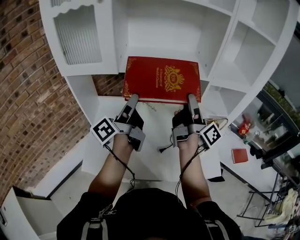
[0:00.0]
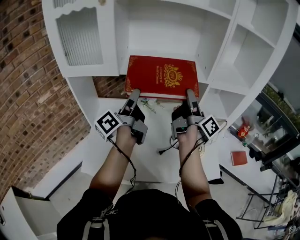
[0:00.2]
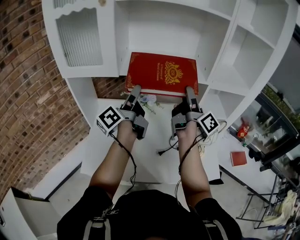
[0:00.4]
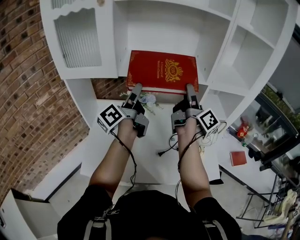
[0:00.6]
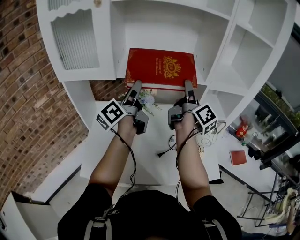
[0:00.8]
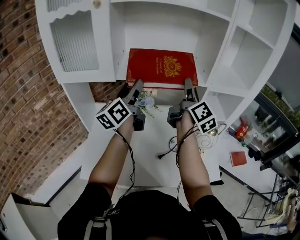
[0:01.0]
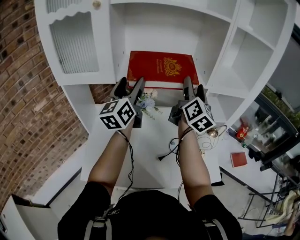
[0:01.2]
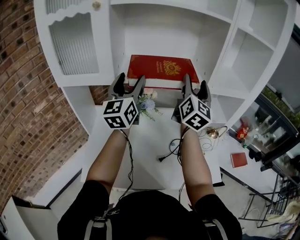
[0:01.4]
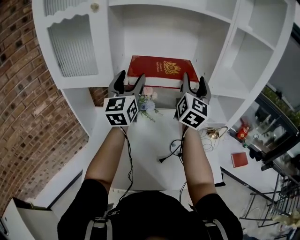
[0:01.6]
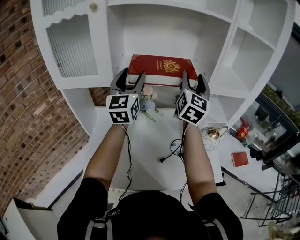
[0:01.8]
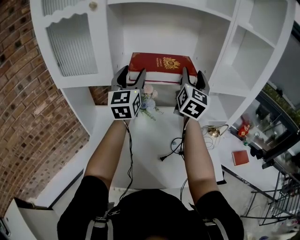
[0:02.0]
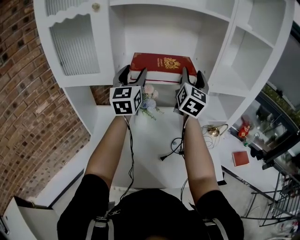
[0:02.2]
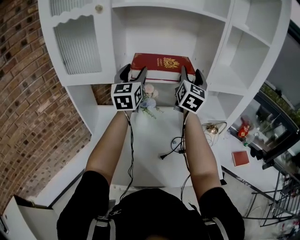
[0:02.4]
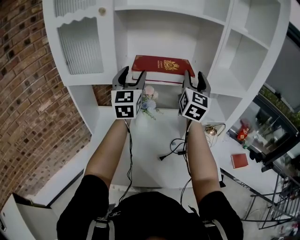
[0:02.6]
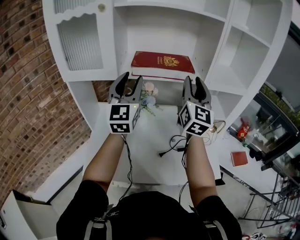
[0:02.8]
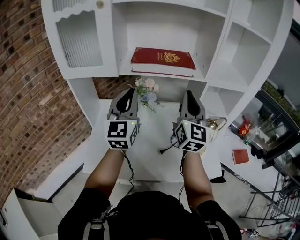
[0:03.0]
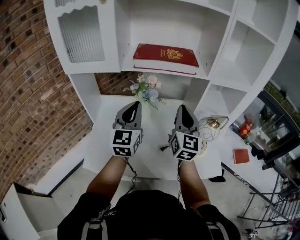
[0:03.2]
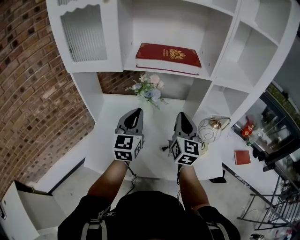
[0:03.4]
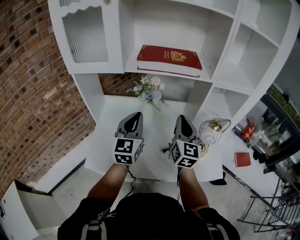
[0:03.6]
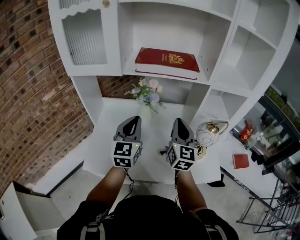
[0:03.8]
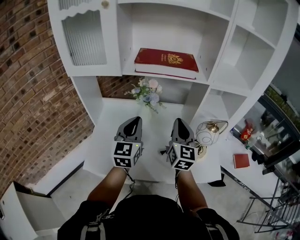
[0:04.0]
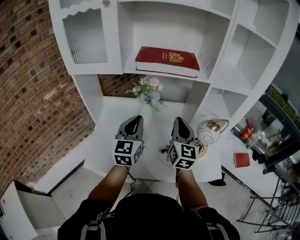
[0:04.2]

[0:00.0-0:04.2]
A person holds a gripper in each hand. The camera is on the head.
0:00.0 to 0:01.4: The two grippers go roughly 10 cm forward and upward. The left gripper twists roughly 70 degrees clockwise, seen from behind, while the right gripper rolls counterclockwise, seen from behind, by approximately 70 degrees.
0:01.4 to 0:02.8: The grippers both shift backward by some 5 cm. The left gripper closes. The right gripper closes up.
0:02.8 to 0:04.2: Both grippers move downward and backward, approximately 20 cm. The left gripper turns by about 20 degrees, and closes its fingers. Meanwhile the right gripper closes.

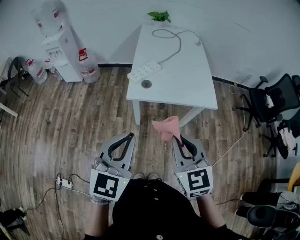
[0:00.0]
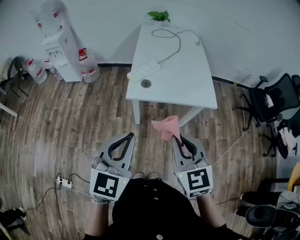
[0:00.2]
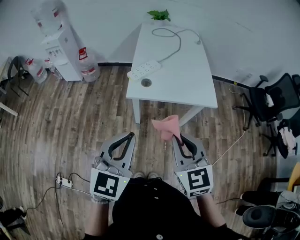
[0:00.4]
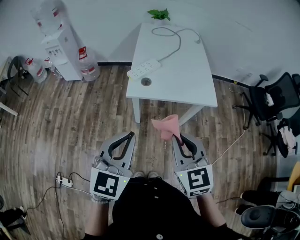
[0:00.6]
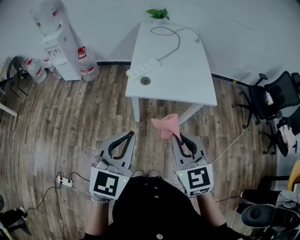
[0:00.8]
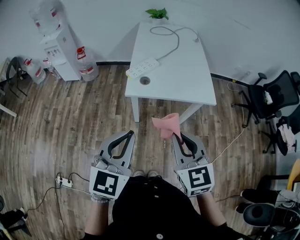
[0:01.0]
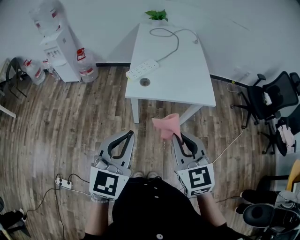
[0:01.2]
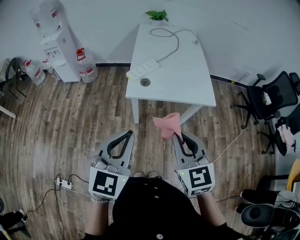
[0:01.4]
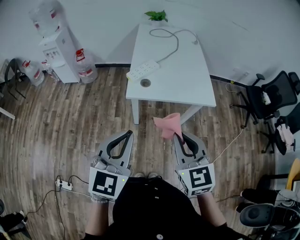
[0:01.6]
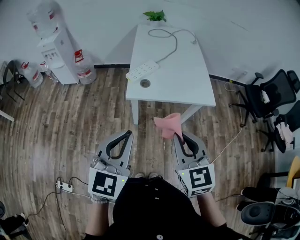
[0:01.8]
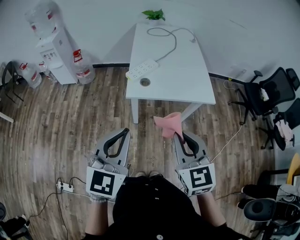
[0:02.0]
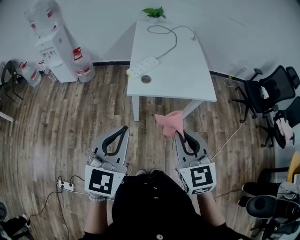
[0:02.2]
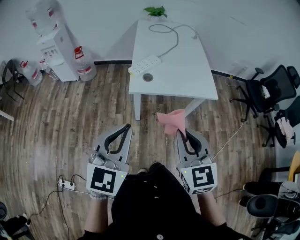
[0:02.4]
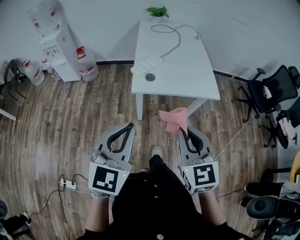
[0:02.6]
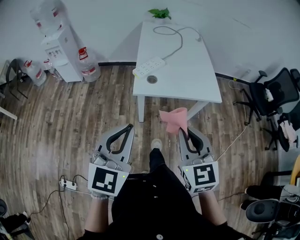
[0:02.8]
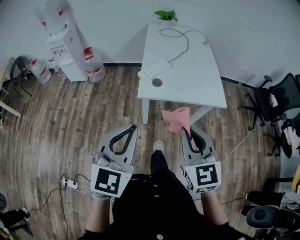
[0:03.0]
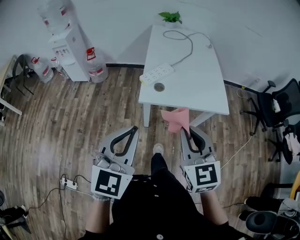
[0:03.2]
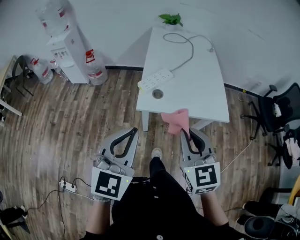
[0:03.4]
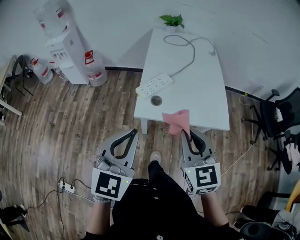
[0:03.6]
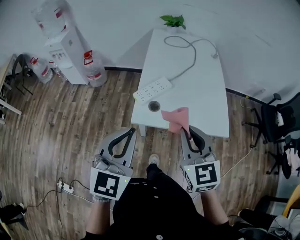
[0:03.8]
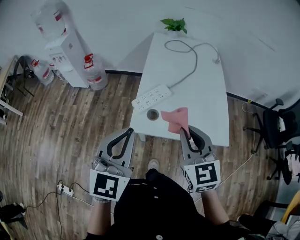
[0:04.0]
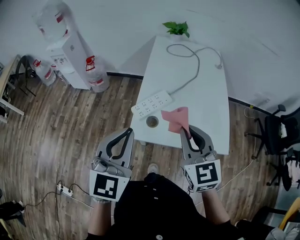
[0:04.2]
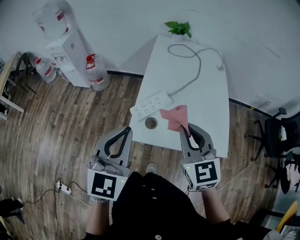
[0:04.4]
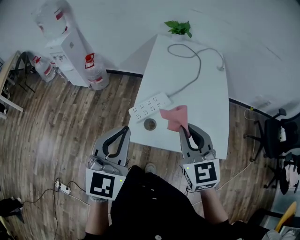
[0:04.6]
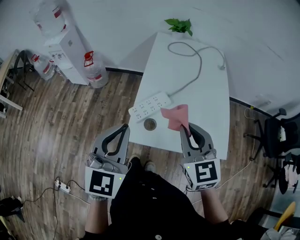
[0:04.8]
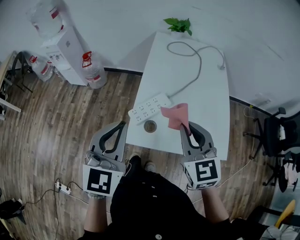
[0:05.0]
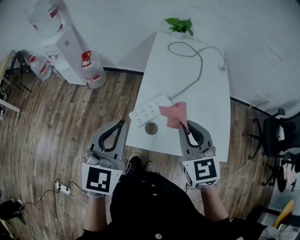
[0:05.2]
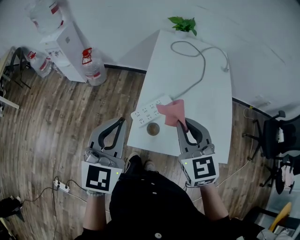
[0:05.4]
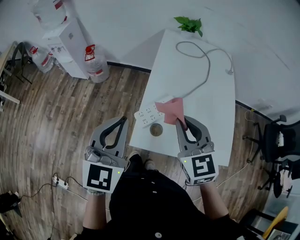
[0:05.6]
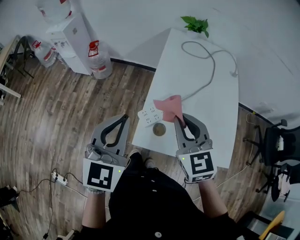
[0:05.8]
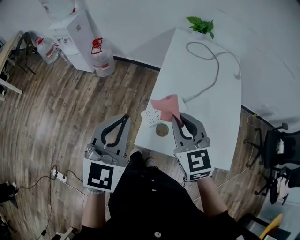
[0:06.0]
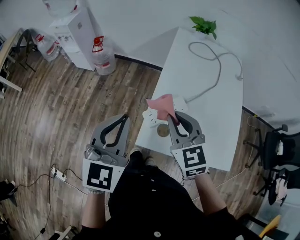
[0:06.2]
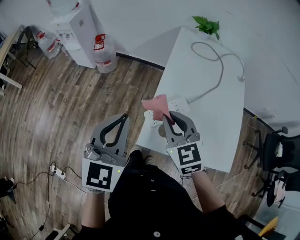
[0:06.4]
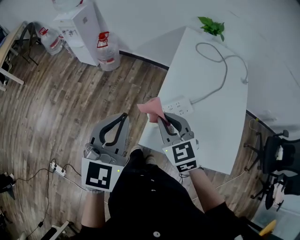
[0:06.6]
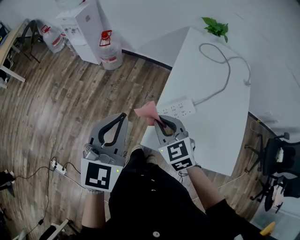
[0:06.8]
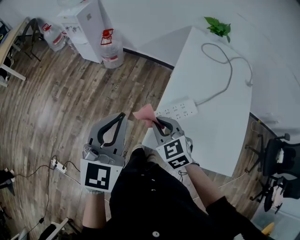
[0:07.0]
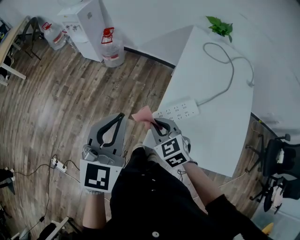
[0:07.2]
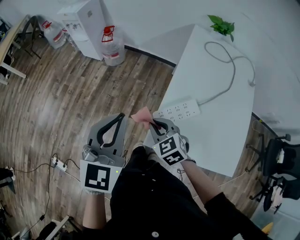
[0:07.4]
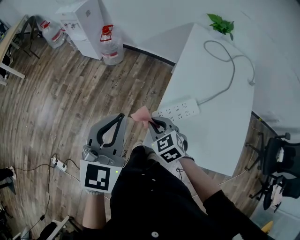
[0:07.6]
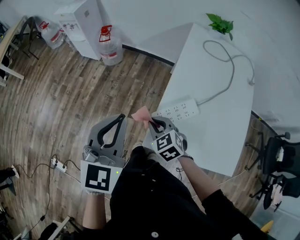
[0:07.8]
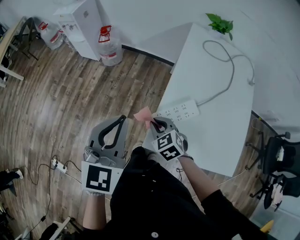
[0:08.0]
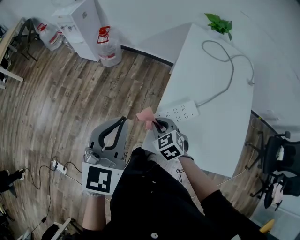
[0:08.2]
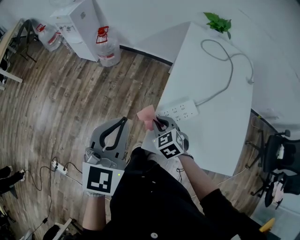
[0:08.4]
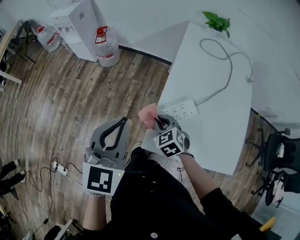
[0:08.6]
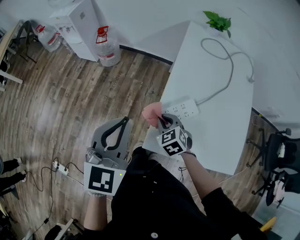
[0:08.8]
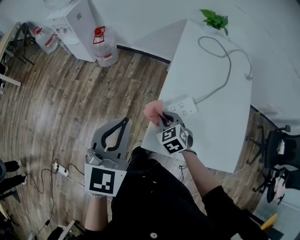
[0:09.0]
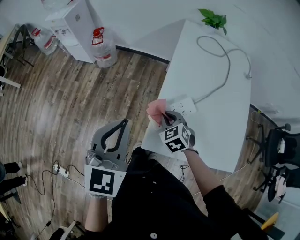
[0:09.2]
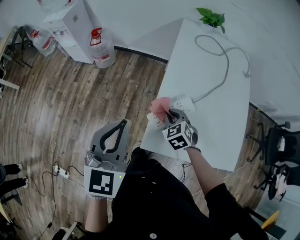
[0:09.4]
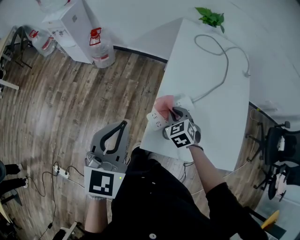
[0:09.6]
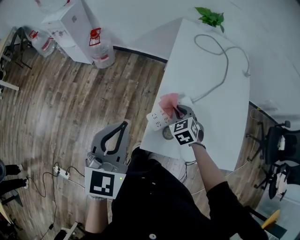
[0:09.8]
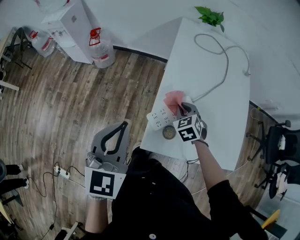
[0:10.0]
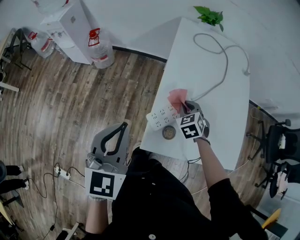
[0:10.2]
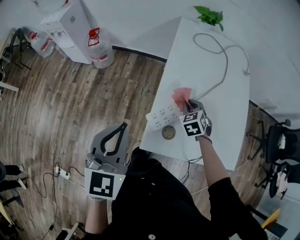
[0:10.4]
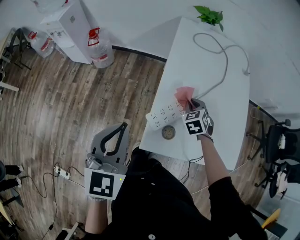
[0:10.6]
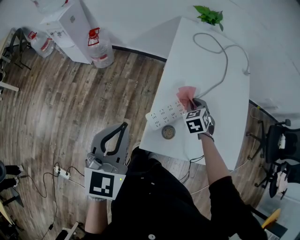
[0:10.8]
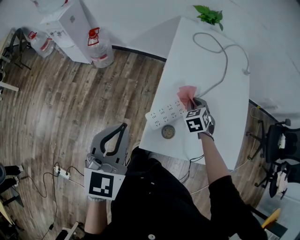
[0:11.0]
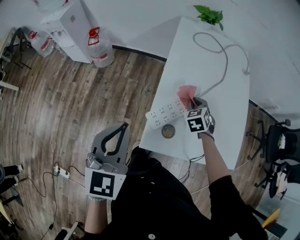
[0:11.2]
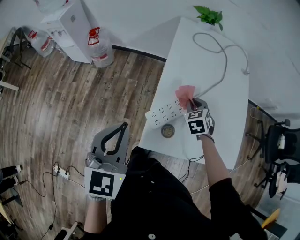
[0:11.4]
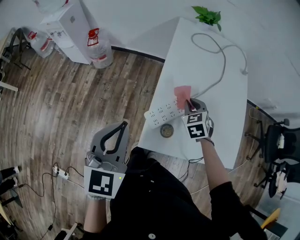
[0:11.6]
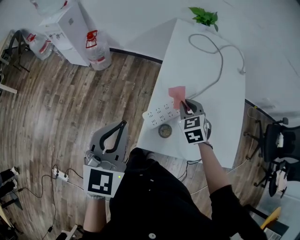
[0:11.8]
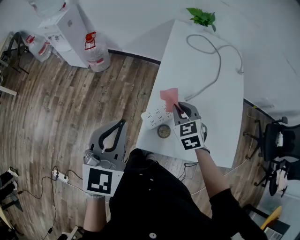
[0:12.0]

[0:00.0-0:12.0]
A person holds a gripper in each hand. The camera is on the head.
0:00.0 to 0:03.0: The grippers make only small movements.
0:03.0 to 0:04.4: The two grippers go some 30 cm forward.
0:04.4 to 0:06.0: The two grippers go some 15 cm forward and to the left.
0:06.0 to 0:07.6: The left gripper goes approximately 5 cm to the left, while the right gripper is displaced downward and to the left by roughly 20 cm, and swivels roughly 30 degrees.
0:07.6 to 0:09.0: The right gripper moves to the right, some 5 cm.
0:09.0 to 0:10.4: The right gripper travels to the right and forward by roughly 15 cm.
0:10.4 to 0:12.0: The right gripper moves upward and backward, roughly 10 cm.

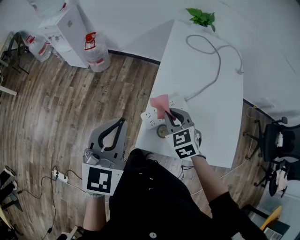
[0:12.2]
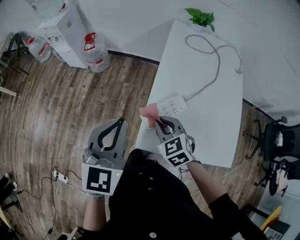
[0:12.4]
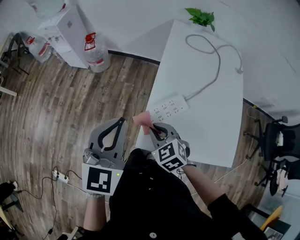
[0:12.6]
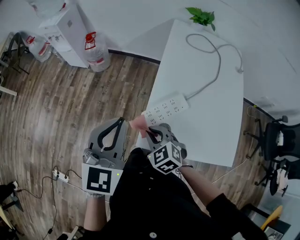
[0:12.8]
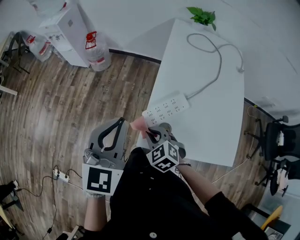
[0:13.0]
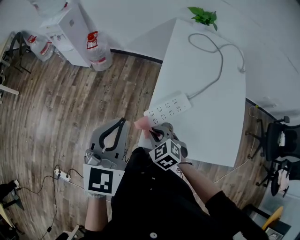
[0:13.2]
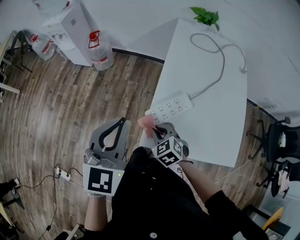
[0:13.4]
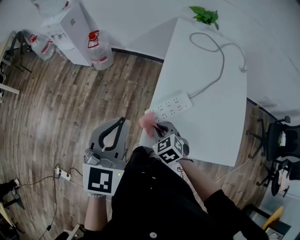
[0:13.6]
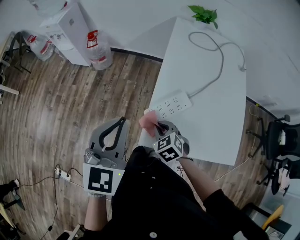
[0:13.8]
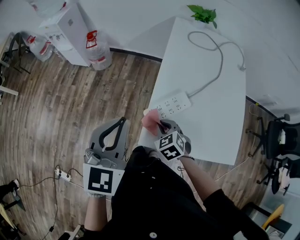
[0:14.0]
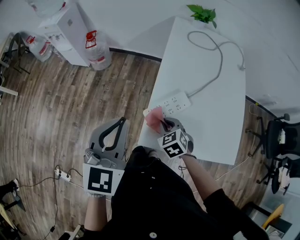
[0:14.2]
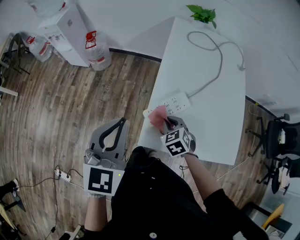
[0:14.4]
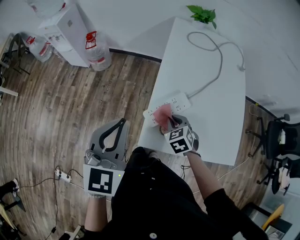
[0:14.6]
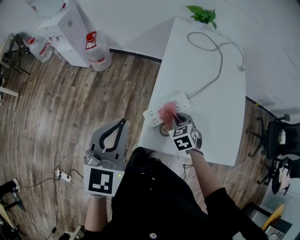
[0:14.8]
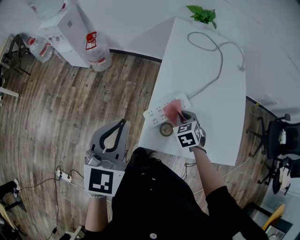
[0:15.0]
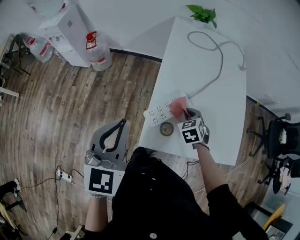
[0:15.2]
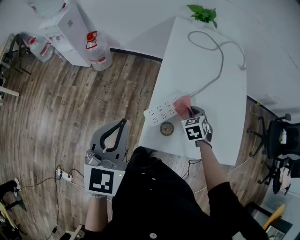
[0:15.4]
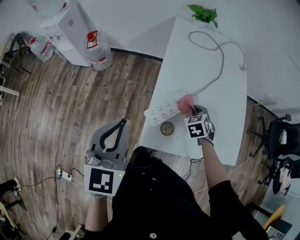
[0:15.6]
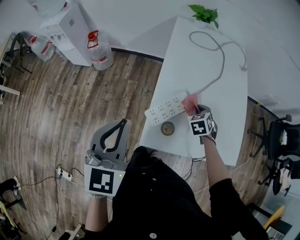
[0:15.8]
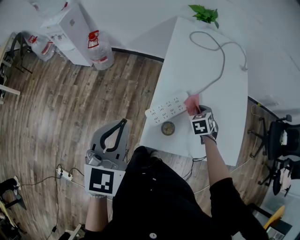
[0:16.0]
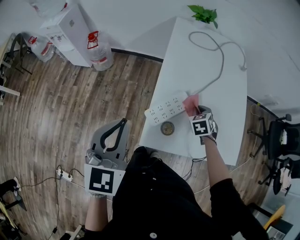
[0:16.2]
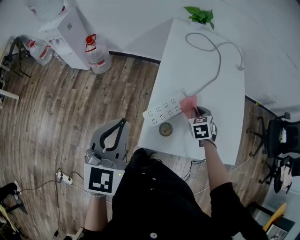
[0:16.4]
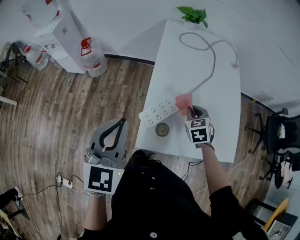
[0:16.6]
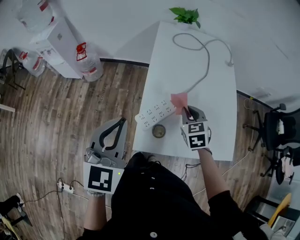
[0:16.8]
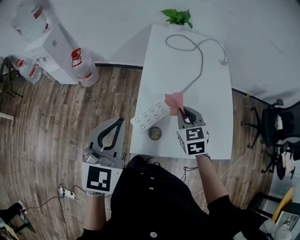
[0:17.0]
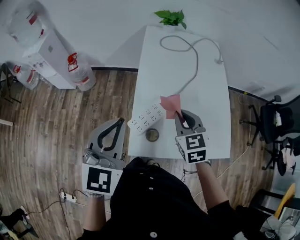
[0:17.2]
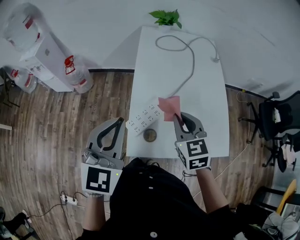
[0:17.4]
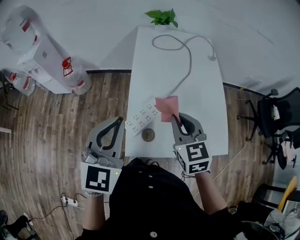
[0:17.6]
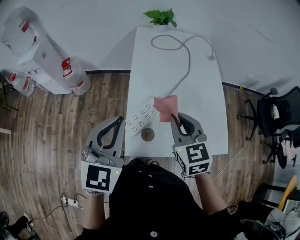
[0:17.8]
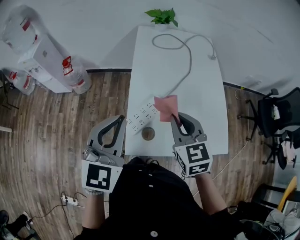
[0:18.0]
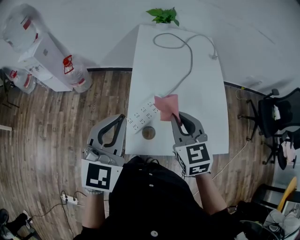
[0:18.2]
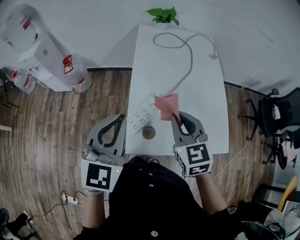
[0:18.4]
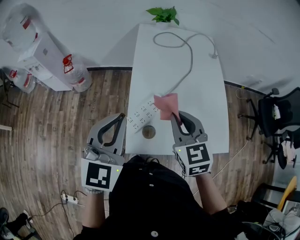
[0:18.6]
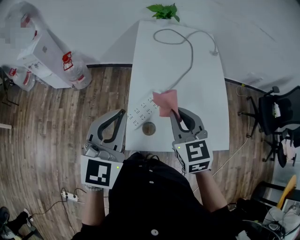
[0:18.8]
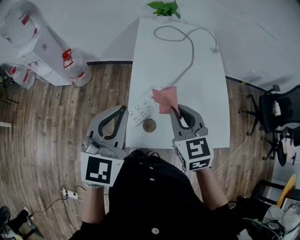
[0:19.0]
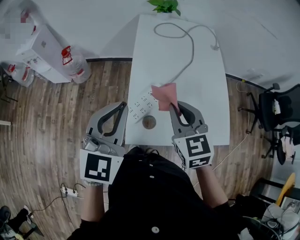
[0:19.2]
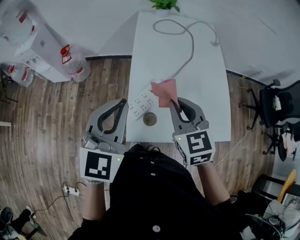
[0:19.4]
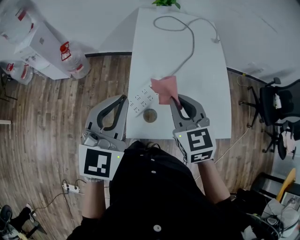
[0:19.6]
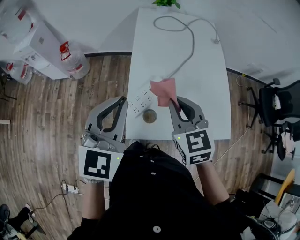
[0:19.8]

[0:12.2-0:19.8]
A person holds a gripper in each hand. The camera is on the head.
0:12.2 to 0:13.8: The right gripper heads downward, backward and to the left, covering approximately 10 cm.
0:13.8 to 0:15.2: The right gripper shifts approximately 15 cm to the right and forward.
0:15.2 to 0:16.8: The right gripper goes about 10 cm upward.
0:16.8 to 0:18.2: The left gripper travels to the right by about 5 cm. The right gripper shifts roughly 15 cm upward and backward.
0:18.2 to 0:19.8: The grippers move only a little.
